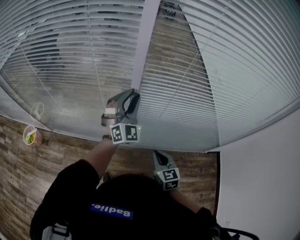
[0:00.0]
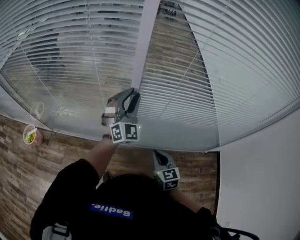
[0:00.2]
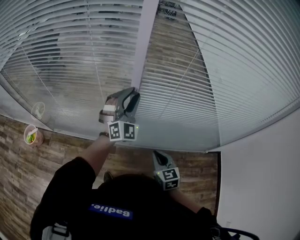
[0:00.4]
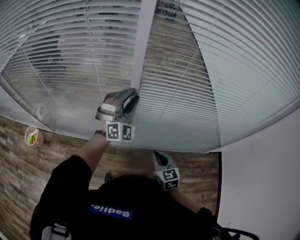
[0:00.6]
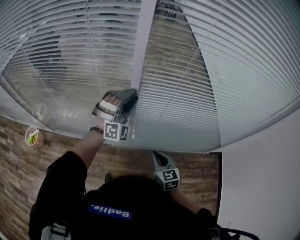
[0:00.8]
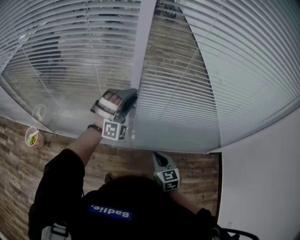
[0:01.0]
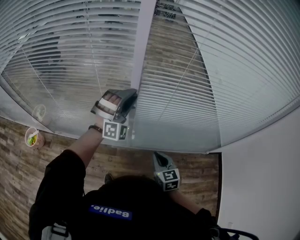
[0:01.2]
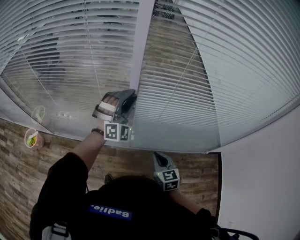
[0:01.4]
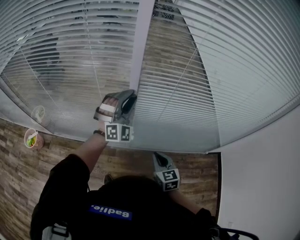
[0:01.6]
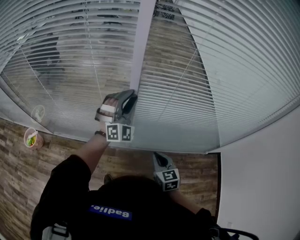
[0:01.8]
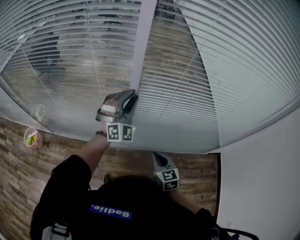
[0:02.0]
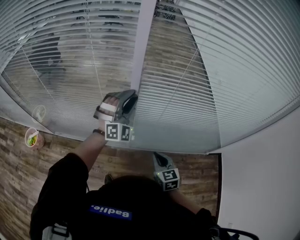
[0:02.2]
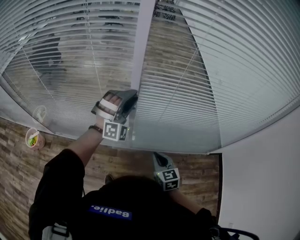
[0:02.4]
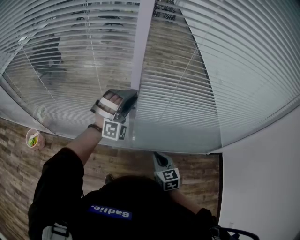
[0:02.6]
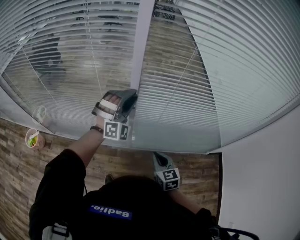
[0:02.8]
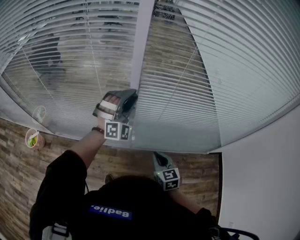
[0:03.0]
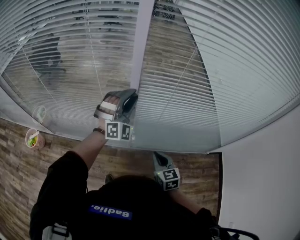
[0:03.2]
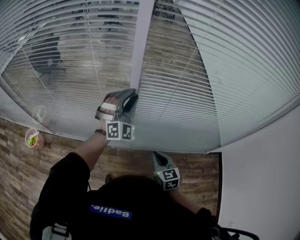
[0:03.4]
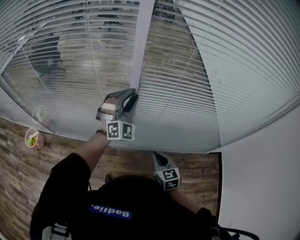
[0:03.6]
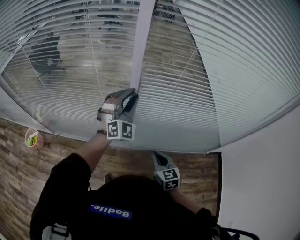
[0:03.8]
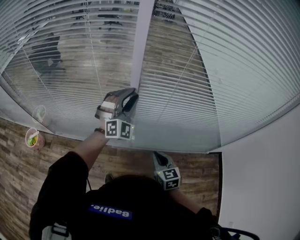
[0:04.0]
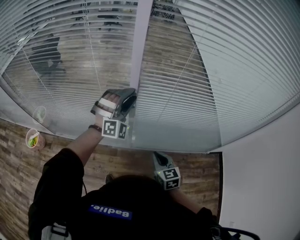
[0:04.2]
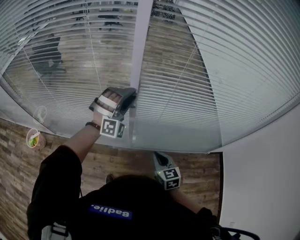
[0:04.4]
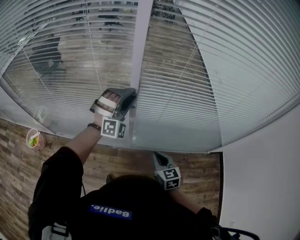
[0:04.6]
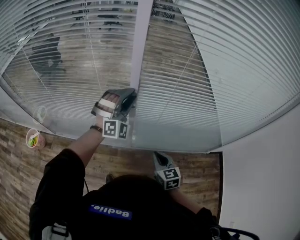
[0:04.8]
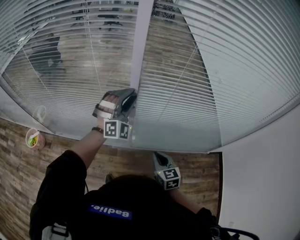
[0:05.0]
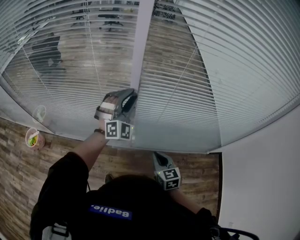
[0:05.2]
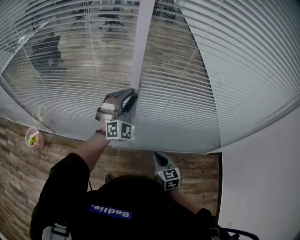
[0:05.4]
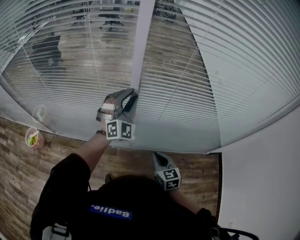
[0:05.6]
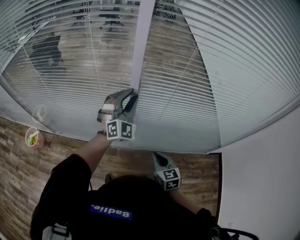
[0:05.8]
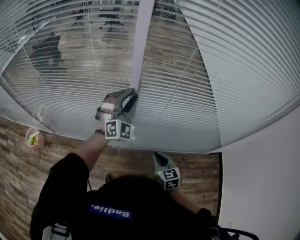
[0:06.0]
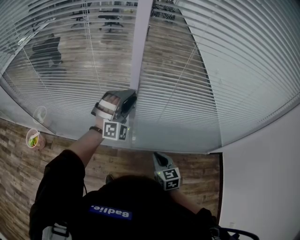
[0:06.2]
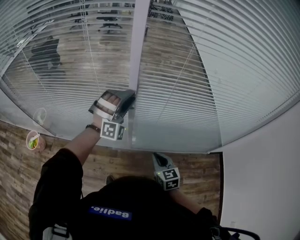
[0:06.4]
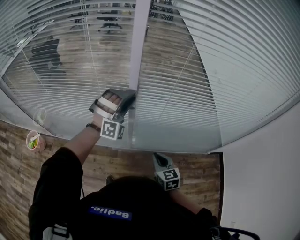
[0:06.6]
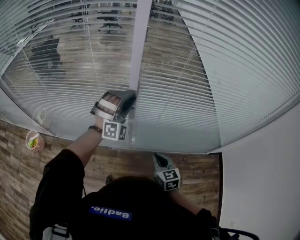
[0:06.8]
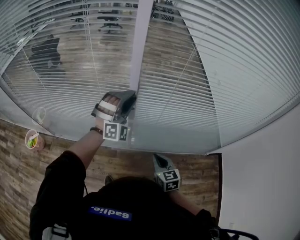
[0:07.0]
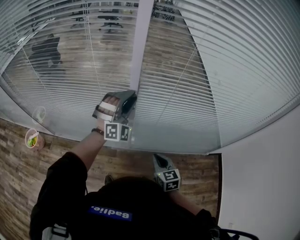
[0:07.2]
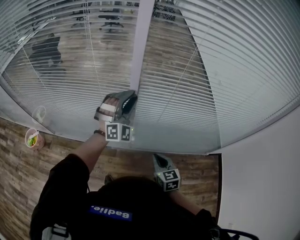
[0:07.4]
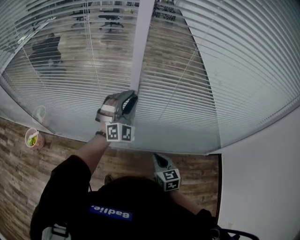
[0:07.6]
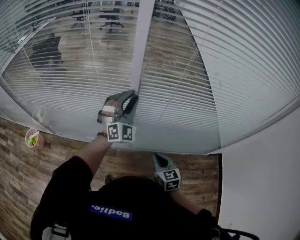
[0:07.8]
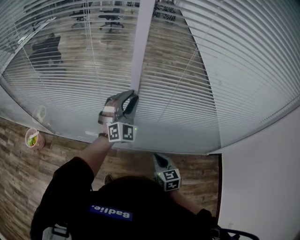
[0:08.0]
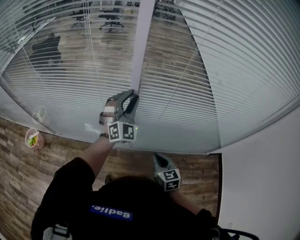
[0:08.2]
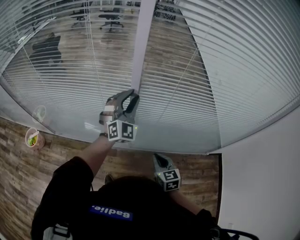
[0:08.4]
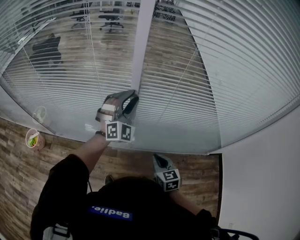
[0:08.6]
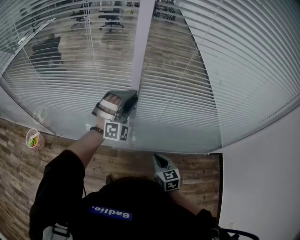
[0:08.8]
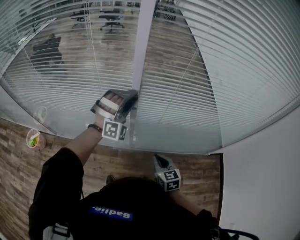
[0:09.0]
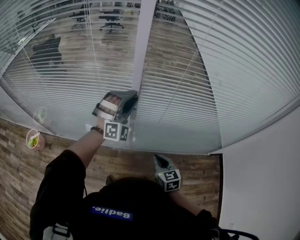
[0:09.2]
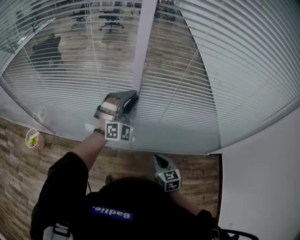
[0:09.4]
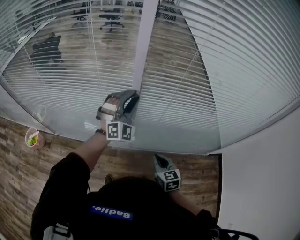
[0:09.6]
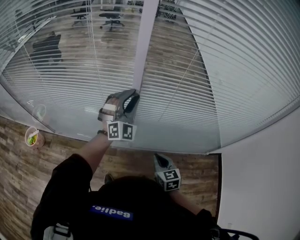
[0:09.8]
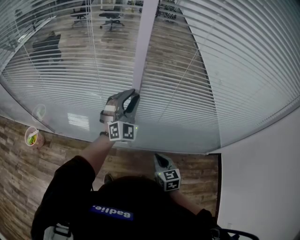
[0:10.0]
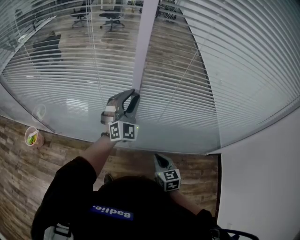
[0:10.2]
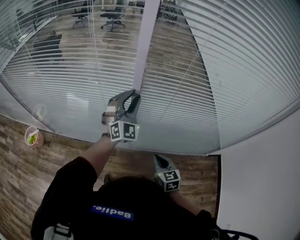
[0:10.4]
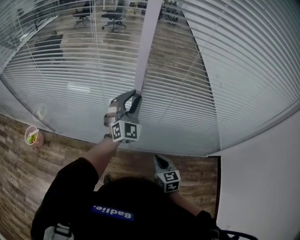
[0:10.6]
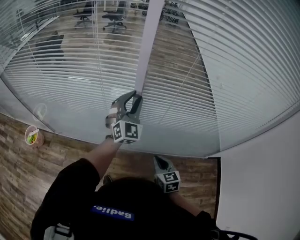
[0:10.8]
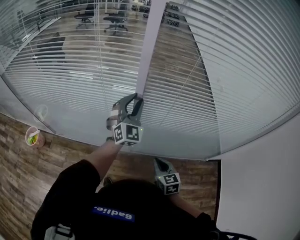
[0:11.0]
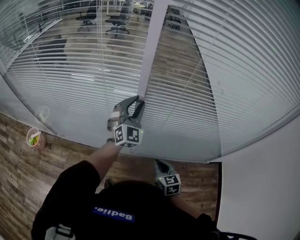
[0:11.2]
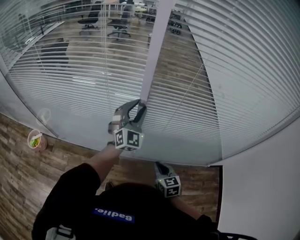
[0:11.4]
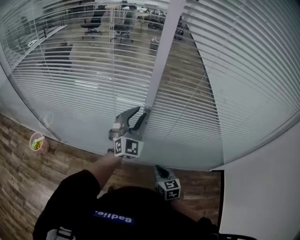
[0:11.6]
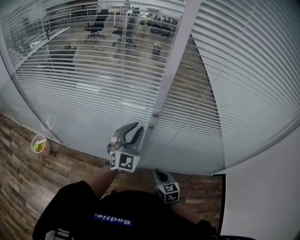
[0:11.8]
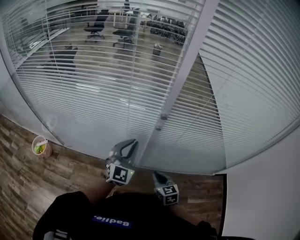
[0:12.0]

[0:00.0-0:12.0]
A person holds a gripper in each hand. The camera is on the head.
0:00.0 to 0:01.6: The left gripper rotates roughly 20 degrees.
0:01.6 to 0:03.0: The grippers move only a little.
0:03.0 to 0:04.4: The grippers stay close to where they were, moving slightly.
0:04.4 to 0:06.0: The left gripper rotates about 30 degrees.
0:07.6 to 0:09.0: The left gripper rotates approximately 20 degrees.
0:09.0 to 0:10.4: The left gripper rotates about 40 degrees.
0:10.4 to 0:12.0: The right gripper moves to the left, some 10 cm; the left gripper shifts roughly 15 cm backward and to the left, changes its angle by roughly 30 degrees, and closes up.

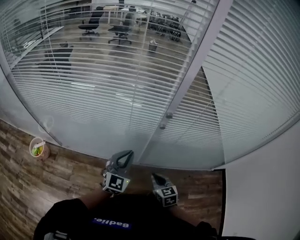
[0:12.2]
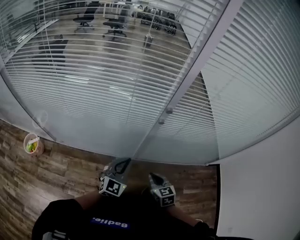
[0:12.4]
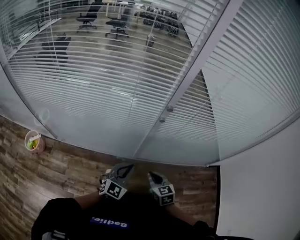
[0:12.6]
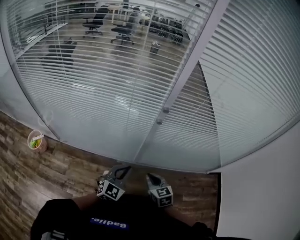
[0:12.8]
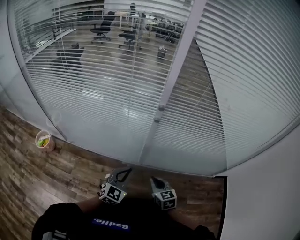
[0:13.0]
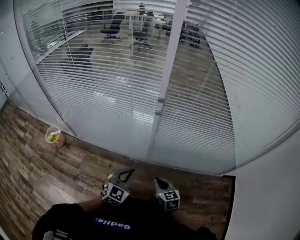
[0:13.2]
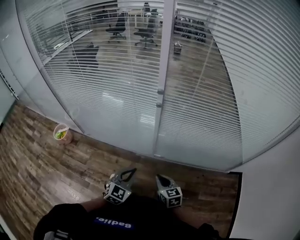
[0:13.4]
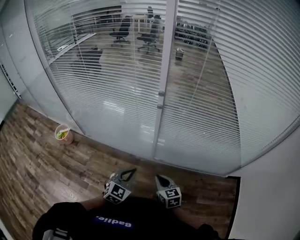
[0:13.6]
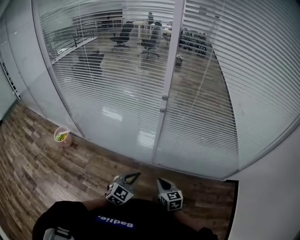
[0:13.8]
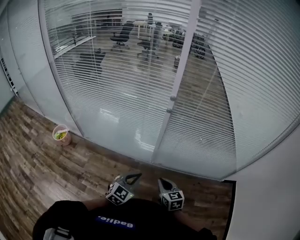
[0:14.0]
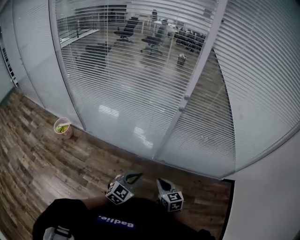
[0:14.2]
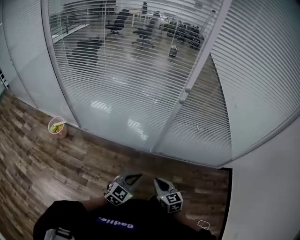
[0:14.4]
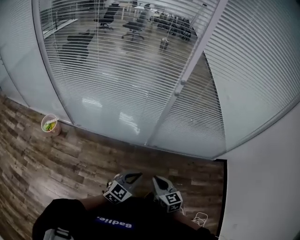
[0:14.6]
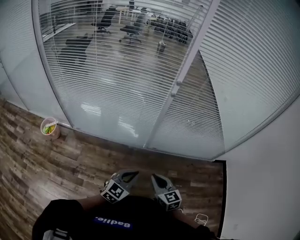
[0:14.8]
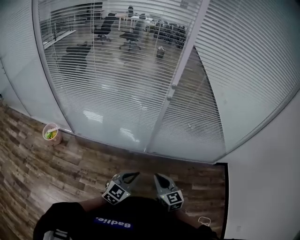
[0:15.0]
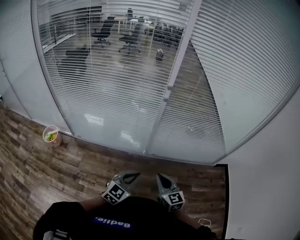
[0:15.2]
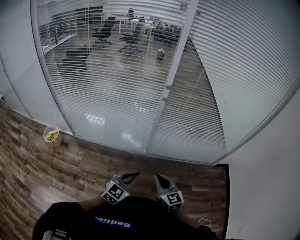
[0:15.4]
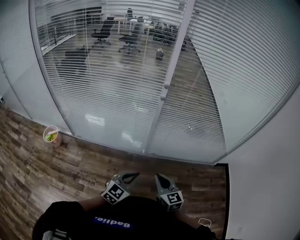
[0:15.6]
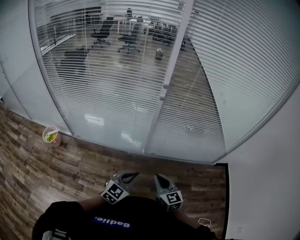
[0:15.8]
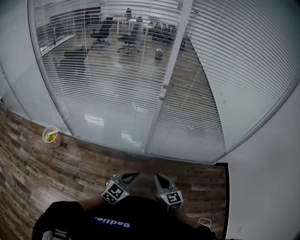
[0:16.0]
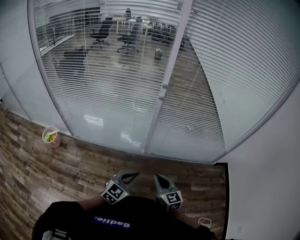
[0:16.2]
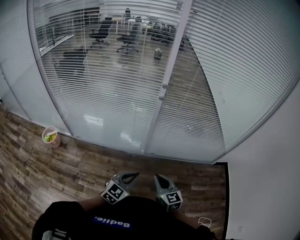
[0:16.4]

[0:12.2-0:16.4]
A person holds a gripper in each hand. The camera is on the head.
0:12.2 to 0:13.6: The left gripper shifts some 20 cm backward; the right gripper moves backward, some 10 cm.
0:13.6 to 0:15.0: The right gripper is displaced backward, to the left and upward by roughly 15 cm; the left gripper moves backward and to the left, about 10 cm, and changes its angle by roughly 20 degrees.
0:15.0 to 0:16.4: There are only small adjustments of the grippers.

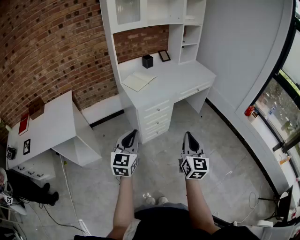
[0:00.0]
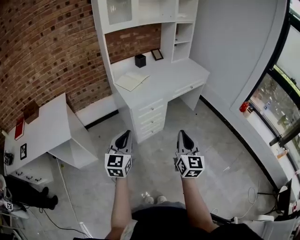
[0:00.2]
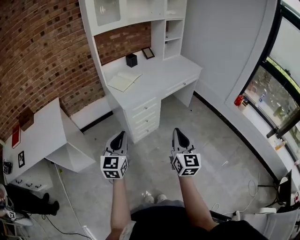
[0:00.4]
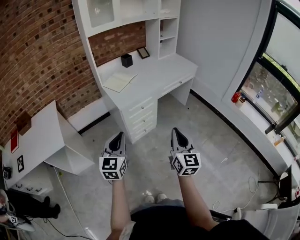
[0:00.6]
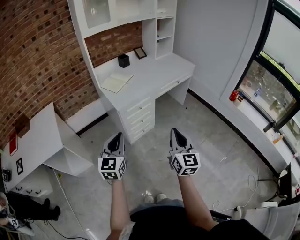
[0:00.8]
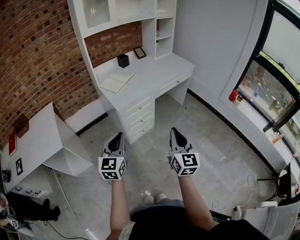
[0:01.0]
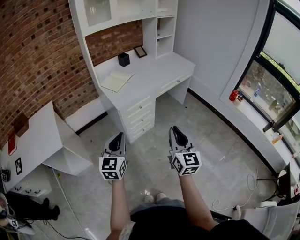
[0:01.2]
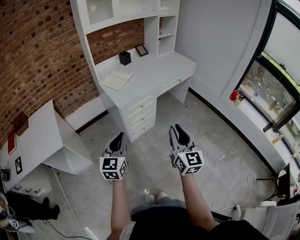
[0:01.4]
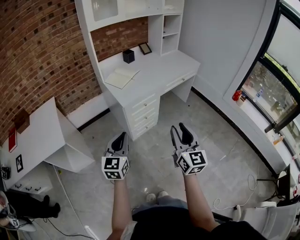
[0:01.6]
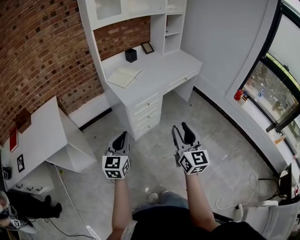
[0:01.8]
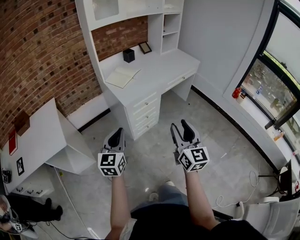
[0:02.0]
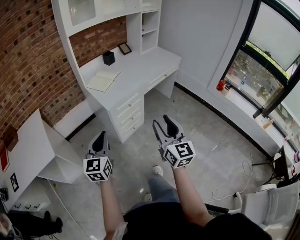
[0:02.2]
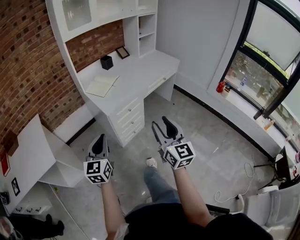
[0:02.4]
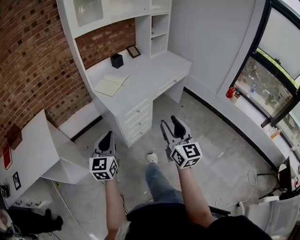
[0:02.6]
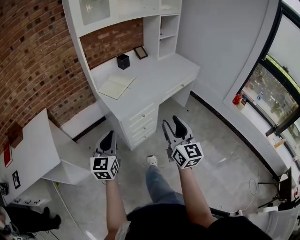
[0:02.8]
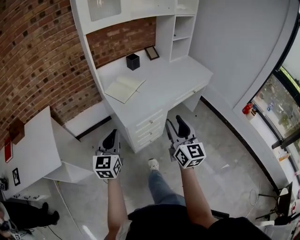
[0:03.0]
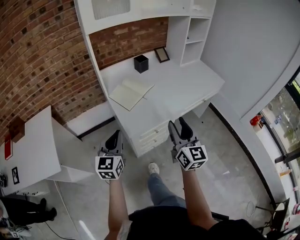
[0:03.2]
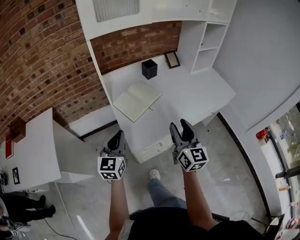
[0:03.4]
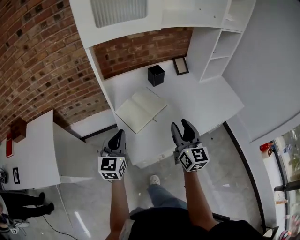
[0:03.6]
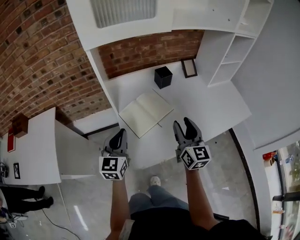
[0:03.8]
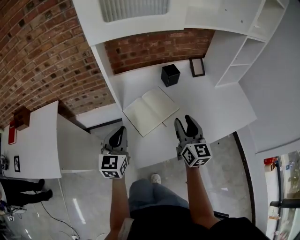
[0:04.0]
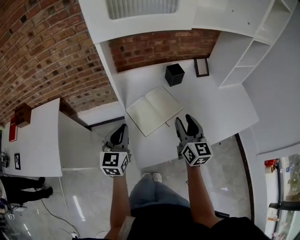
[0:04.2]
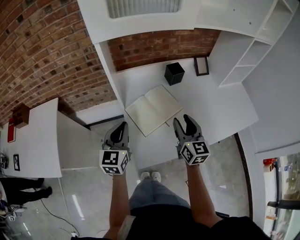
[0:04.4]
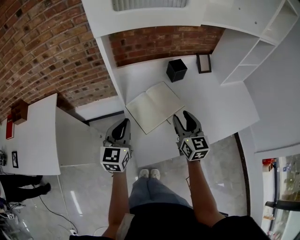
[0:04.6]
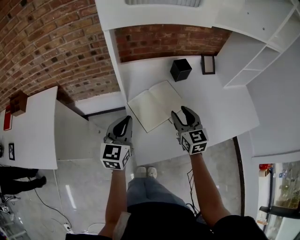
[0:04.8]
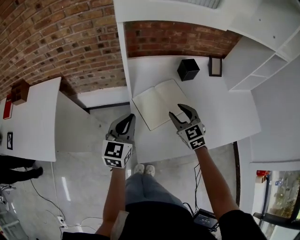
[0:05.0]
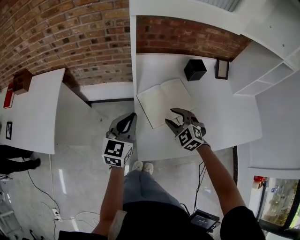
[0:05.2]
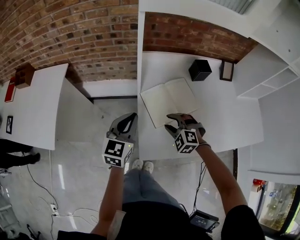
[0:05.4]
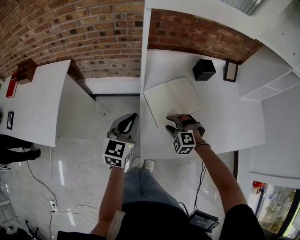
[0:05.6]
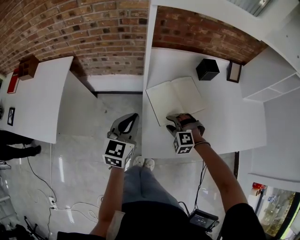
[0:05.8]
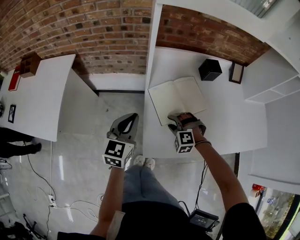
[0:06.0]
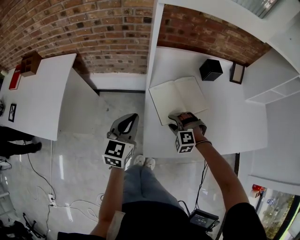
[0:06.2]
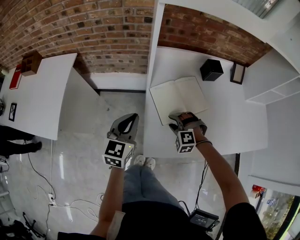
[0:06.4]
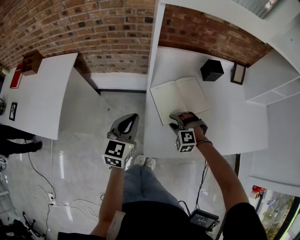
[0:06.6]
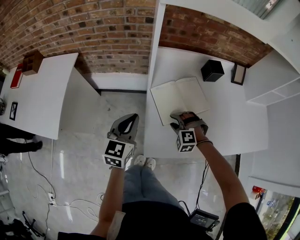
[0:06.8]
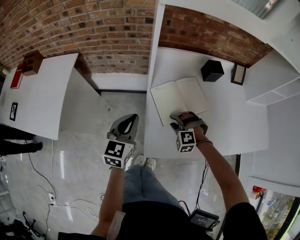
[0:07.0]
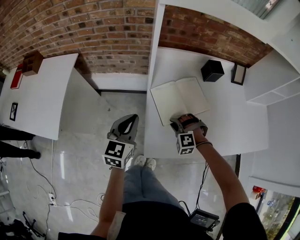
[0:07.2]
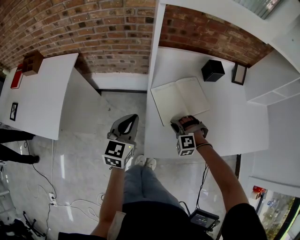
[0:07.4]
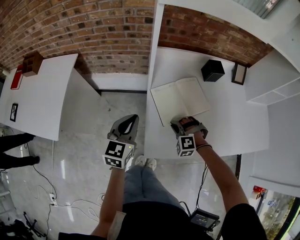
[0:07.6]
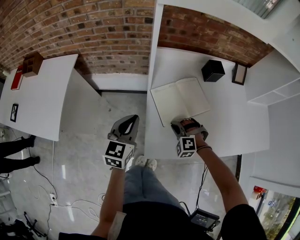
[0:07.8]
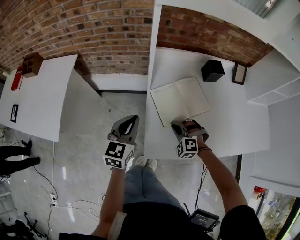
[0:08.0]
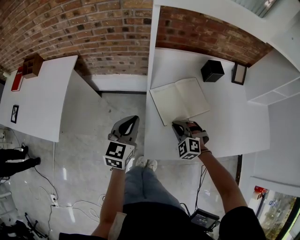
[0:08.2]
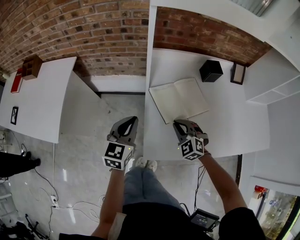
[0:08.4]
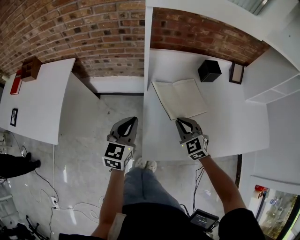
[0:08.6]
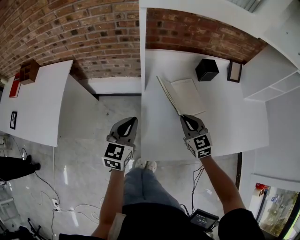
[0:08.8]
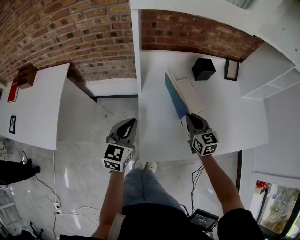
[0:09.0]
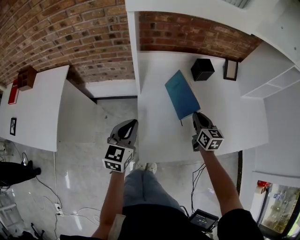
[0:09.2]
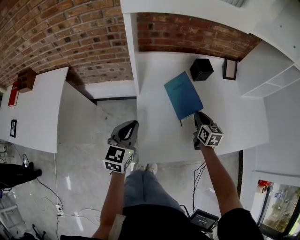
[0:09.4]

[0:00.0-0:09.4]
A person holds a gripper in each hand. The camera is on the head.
0:00.0 to 0:01.6: The right gripper opens its fingers.
0:01.6 to 0:03.2: Both grippers travel together forward, roughly 30 cm.
0:03.2 to 0:04.8: Both grippers move forward, approximately 30 cm. The right gripper swivels approximately 30 degrees.
0:04.8 to 0:06.2: The left gripper goes roughly 5 cm to the left. Meanwhile the right gripper moves downward and to the left, some 20 cm, and rotates around the line of its fingers by about 80 degrees, counterclockwise from behind.
0:06.2 to 0:07.8: The right gripper closes.
0:07.8 to 0:09.4: The right gripper goes about 20 cm to the right and forward, and rotates around the line of its fingers by some 100 degrees, clockwise from behind.
